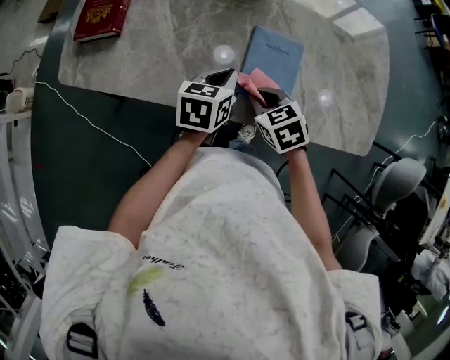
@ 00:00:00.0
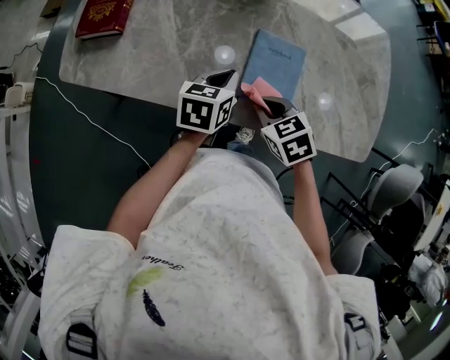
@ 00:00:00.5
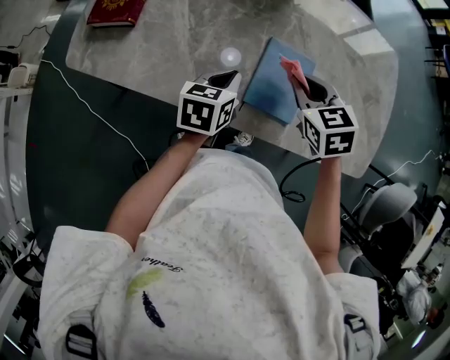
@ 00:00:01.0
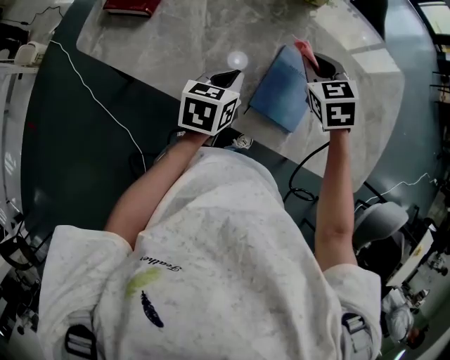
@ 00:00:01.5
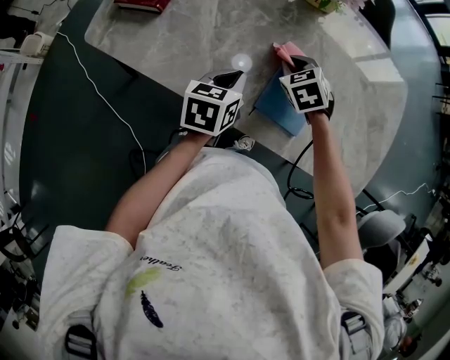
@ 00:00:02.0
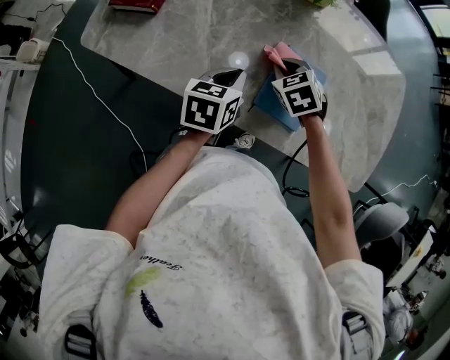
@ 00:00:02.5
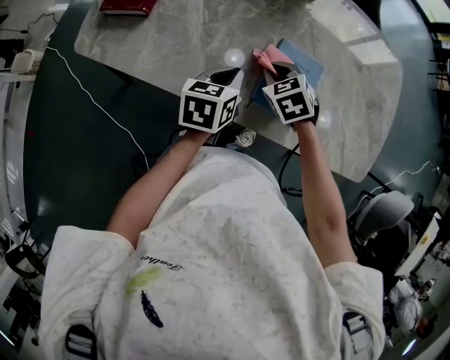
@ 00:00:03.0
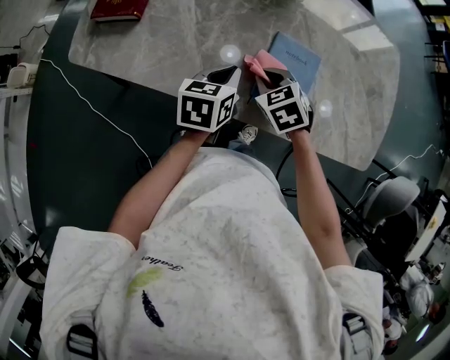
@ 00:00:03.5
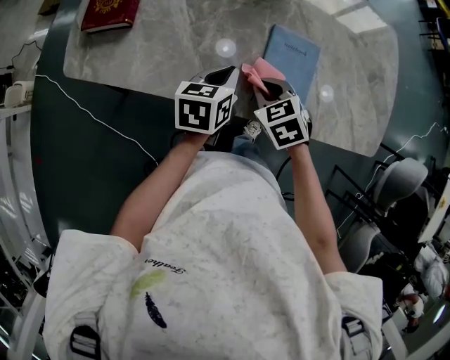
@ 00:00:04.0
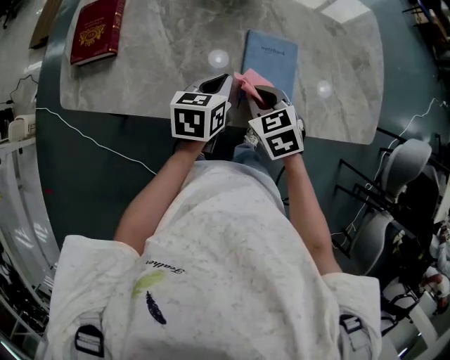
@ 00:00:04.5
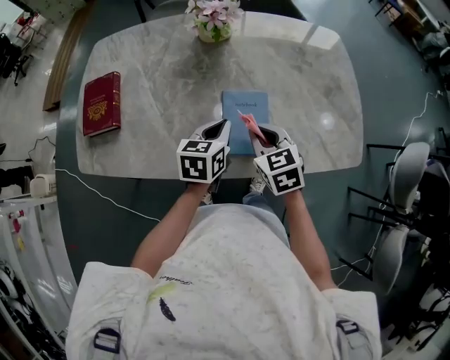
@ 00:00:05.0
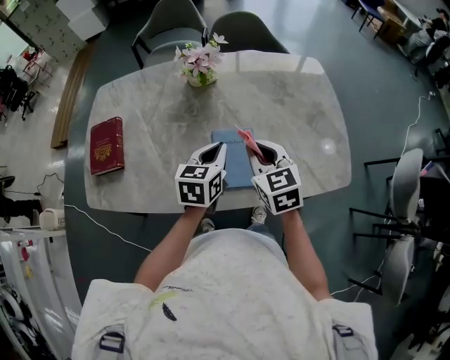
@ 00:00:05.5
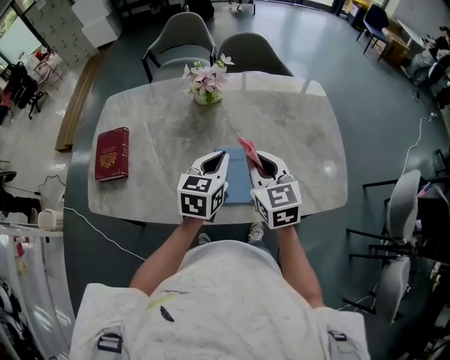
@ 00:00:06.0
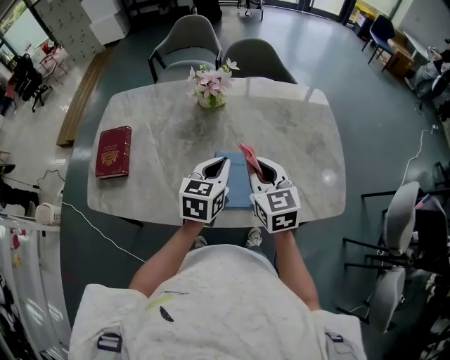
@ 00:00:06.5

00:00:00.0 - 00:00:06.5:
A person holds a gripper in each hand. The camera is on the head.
00:00:00.0 - 00:00:02.0: The left gripper travels to the left by some 5 cm. Meanwhile the right gripper is displaced forward by roughly 15 cm, and rotates approximately 20 degrees.
00:00:02.0 - 00:00:04.5: The right gripper goes roughly 15 cm backward, and turns by roughly 20 degrees.
00:00:04.5 - 00:00:06.5: Both grippers travel together upward and to the right, some 20 cm. The right gripper rotates about 30 degrees.

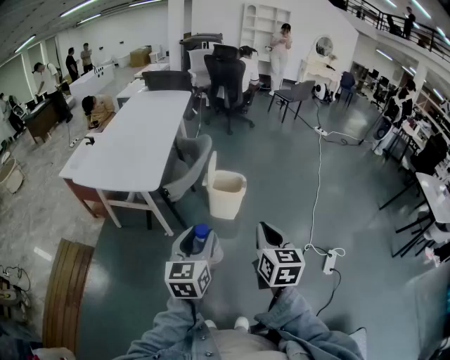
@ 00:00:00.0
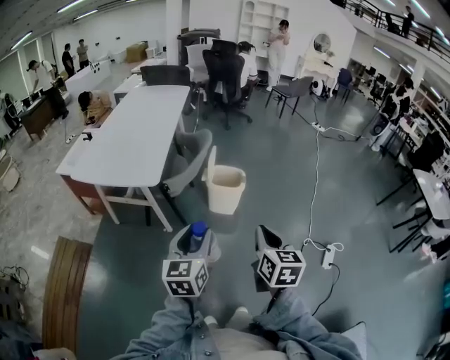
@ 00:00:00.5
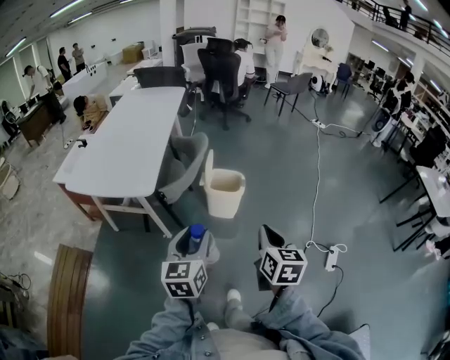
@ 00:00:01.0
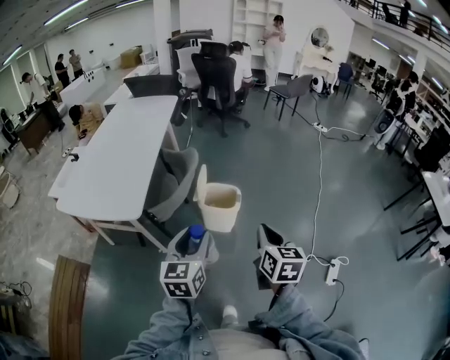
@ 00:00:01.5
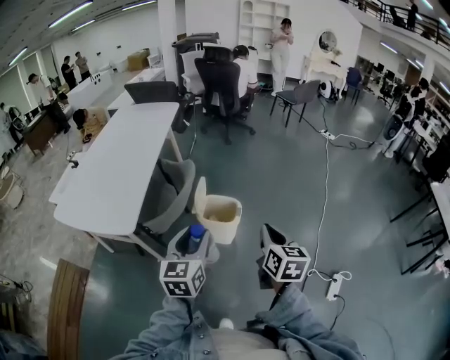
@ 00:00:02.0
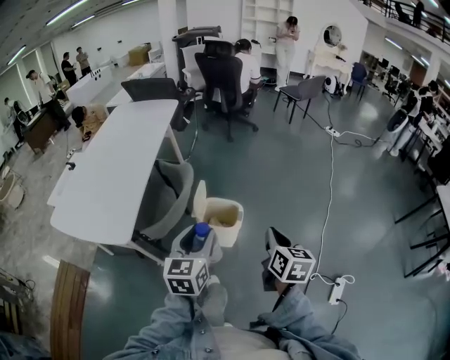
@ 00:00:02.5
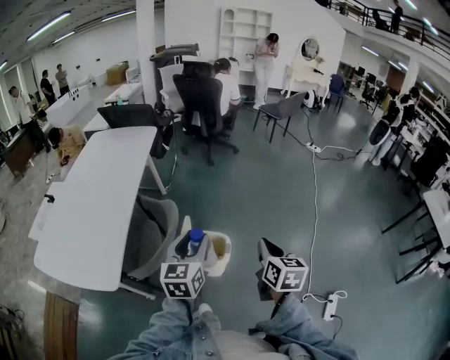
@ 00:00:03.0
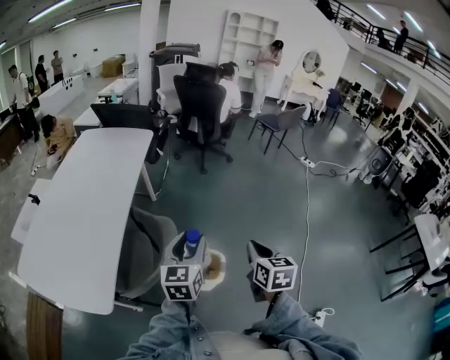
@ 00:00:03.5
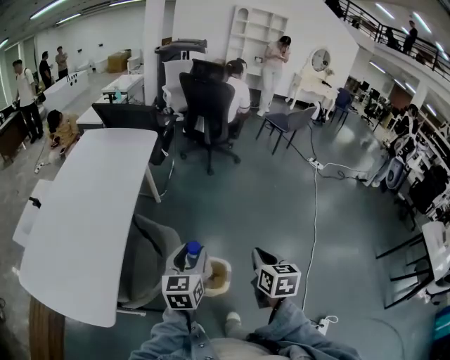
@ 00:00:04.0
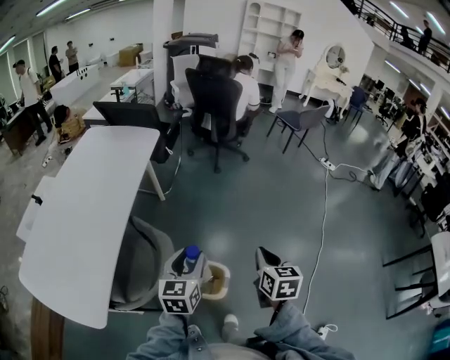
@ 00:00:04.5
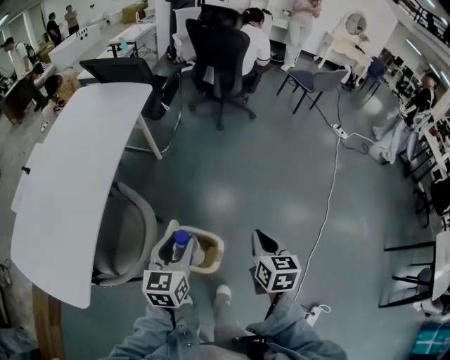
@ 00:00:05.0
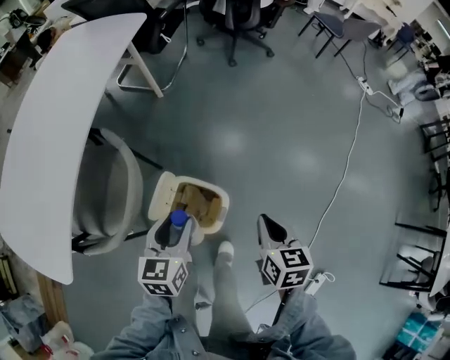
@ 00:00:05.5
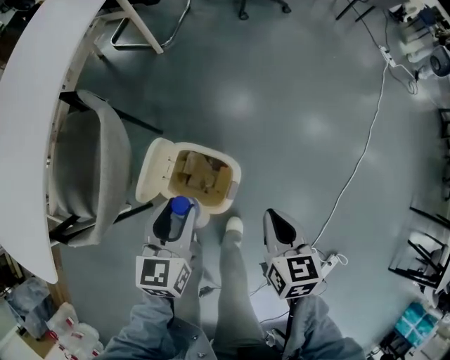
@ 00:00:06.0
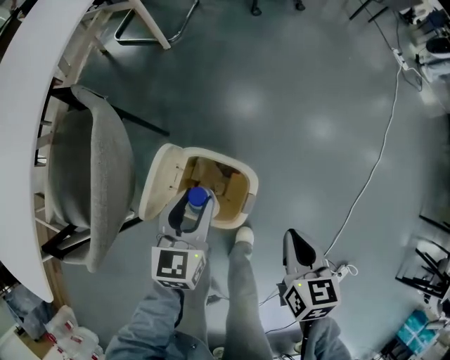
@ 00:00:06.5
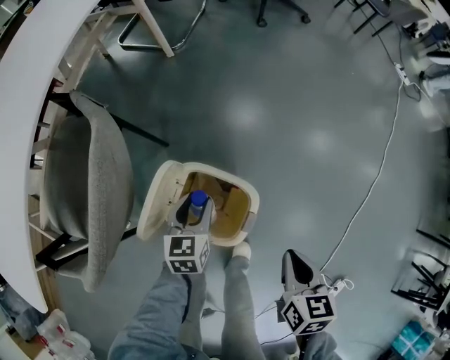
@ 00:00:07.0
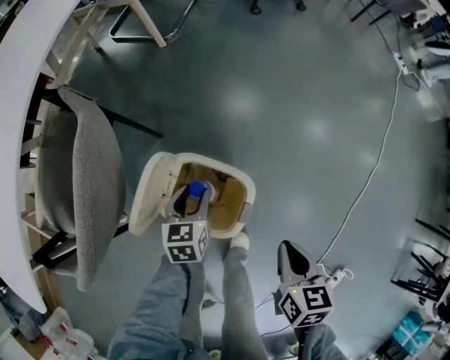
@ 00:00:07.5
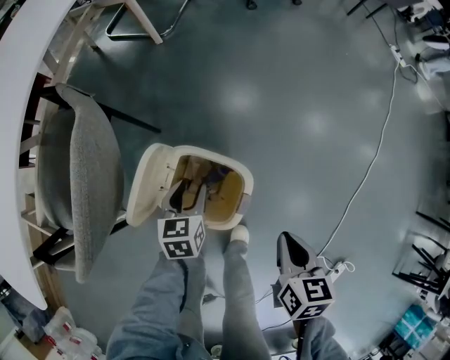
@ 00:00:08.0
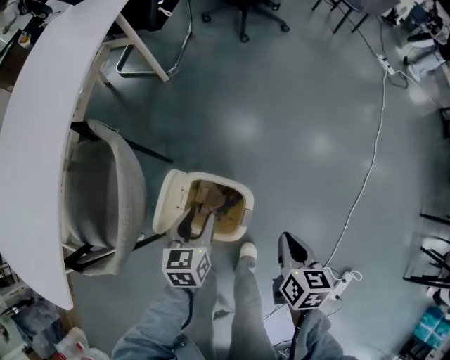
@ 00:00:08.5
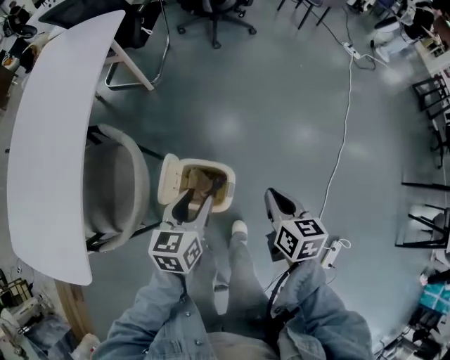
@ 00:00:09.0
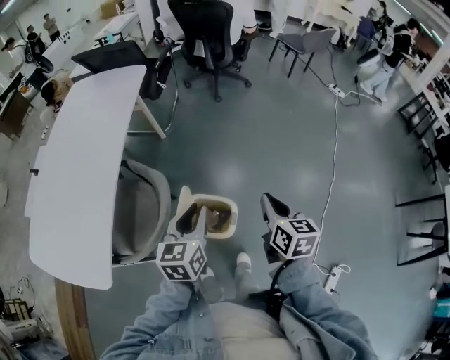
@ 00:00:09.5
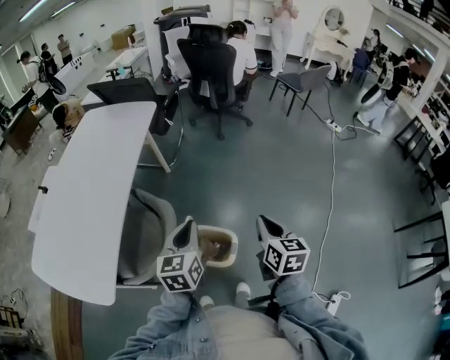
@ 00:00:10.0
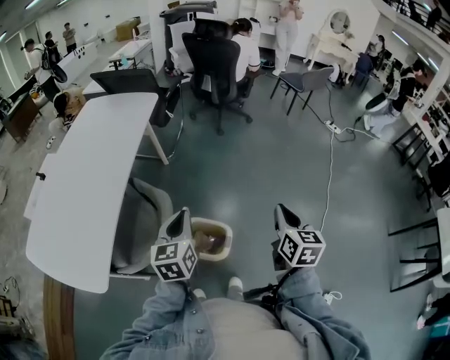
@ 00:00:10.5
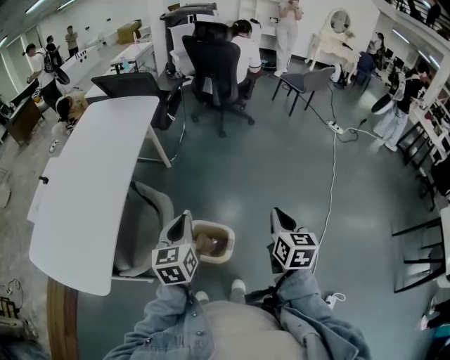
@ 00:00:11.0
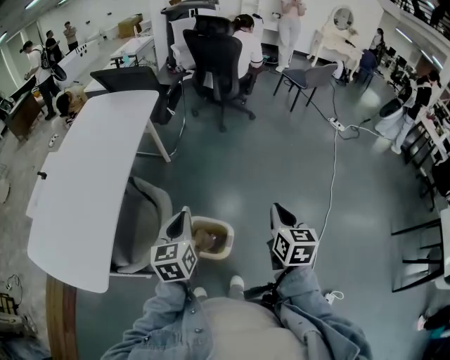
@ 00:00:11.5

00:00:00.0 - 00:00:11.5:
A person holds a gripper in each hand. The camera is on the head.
00:00:00.0 - 00:00:02.0: Both grippers travel together forward, roughly 25 cm.
00:00:02.0 - 00:00:04.0: The grippers both shift forward by approximately 35 cm.
00:00:04.0 - 00:00:06.0: Both grippers move downward, approximately 30 cm.
00:00:06.0 - 00:00:07.5: The left gripper moves downward, about 20 cm. Meanwhile the right gripper shifts approximately 10 cm downward.
00:00:07.5 - 00:00:09.5: The two grippers go roughly 40 cm upward. The right gripper changes its angle by some 20 degrees; the left gripper rotates about 20 degrees, and closes up.
00:00:09.5 - 00:00:11.5: The right gripper moves upward, about 5 cm. Meanwhile the left gripper changes place by about 5 cm.

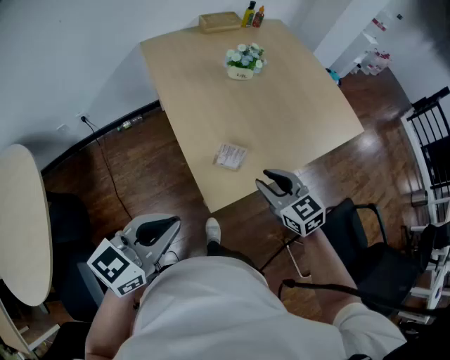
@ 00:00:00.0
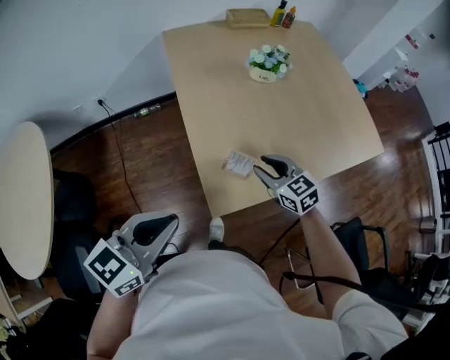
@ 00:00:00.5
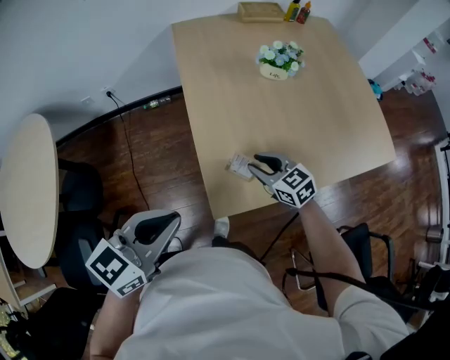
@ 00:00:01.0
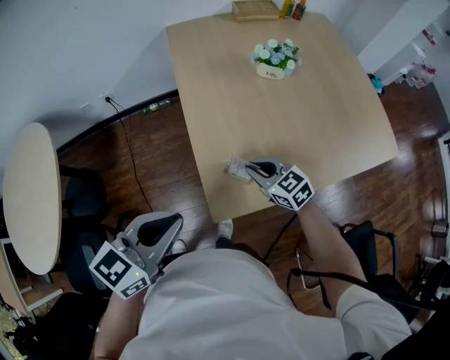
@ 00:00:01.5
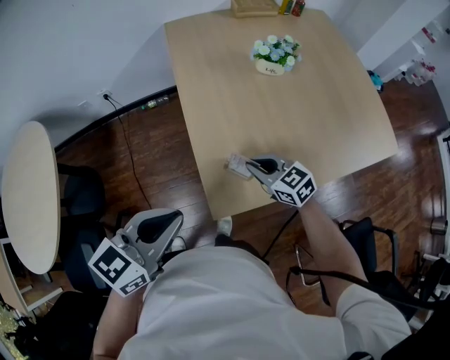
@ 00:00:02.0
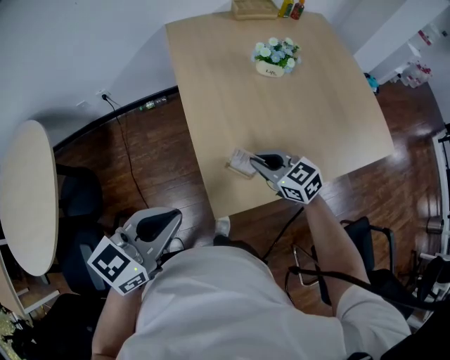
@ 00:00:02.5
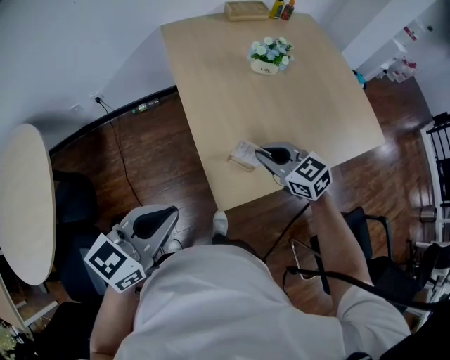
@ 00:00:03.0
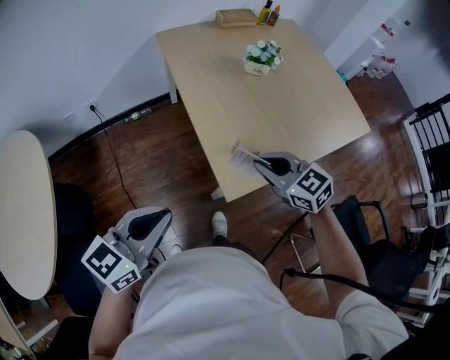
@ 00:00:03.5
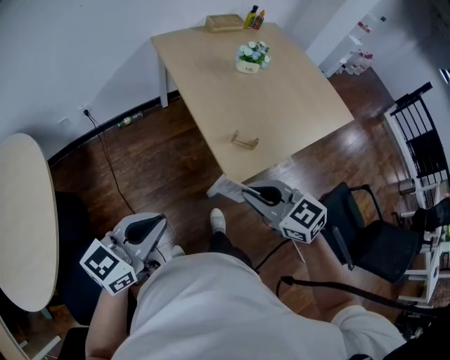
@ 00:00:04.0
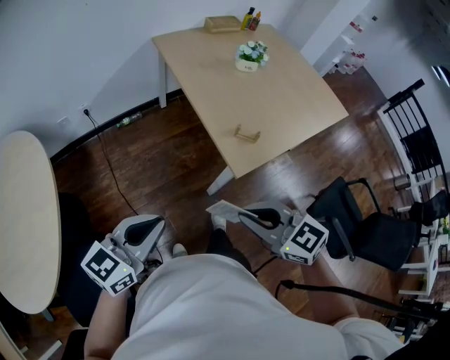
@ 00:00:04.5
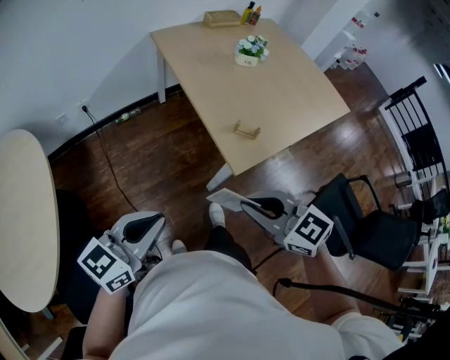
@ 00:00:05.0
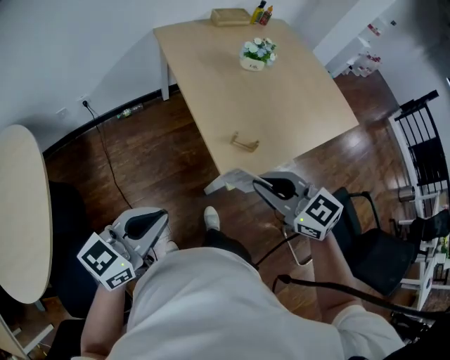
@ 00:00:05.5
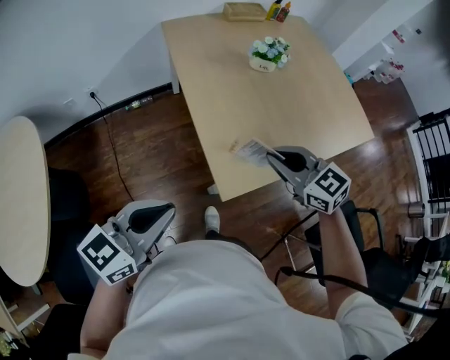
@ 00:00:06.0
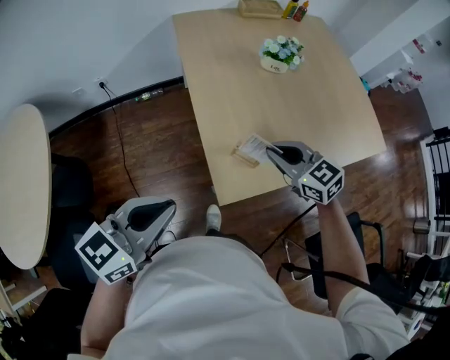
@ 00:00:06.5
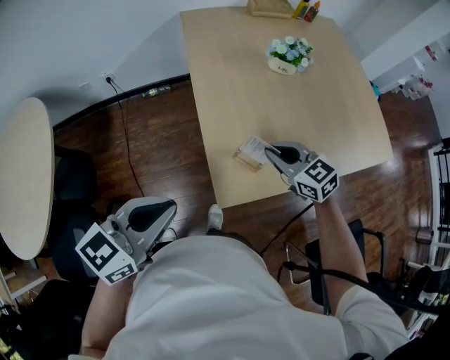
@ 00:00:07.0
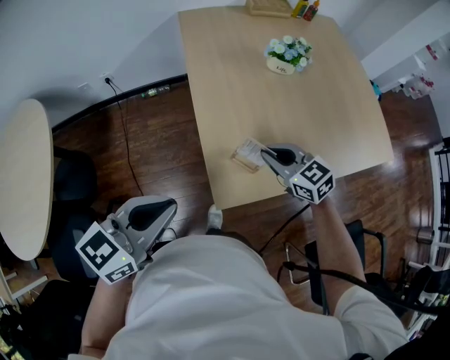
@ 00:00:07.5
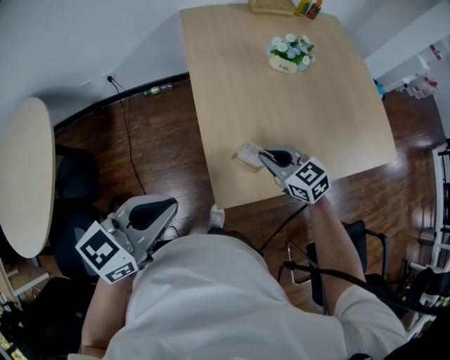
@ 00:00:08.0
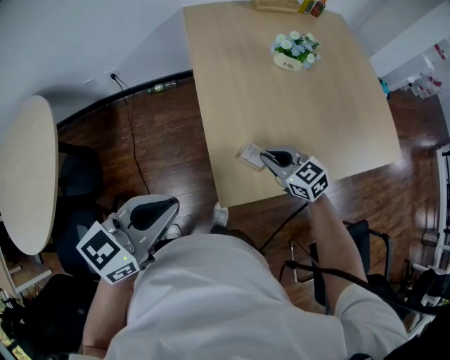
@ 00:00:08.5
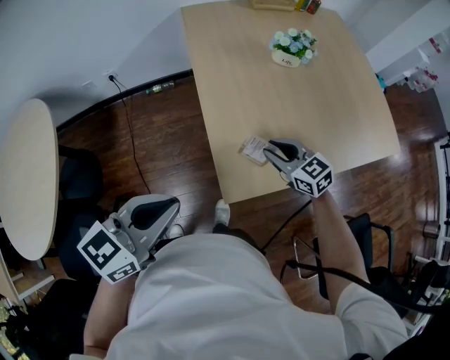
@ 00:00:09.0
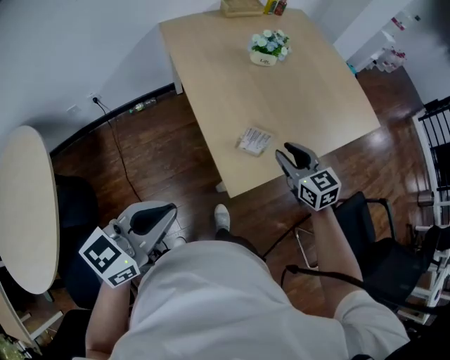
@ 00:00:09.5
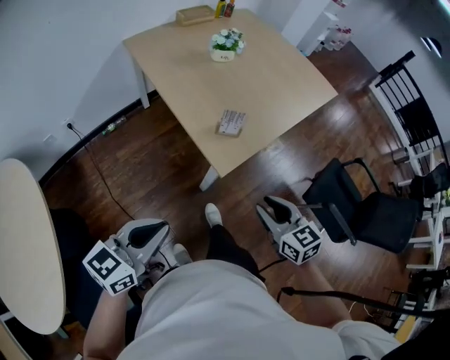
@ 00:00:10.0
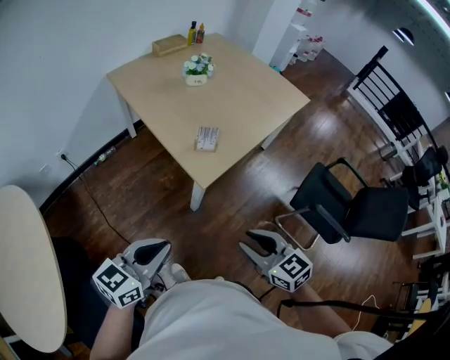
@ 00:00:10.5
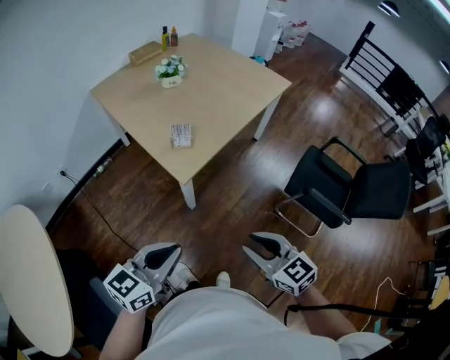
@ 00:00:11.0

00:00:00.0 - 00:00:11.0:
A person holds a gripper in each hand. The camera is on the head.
00:00:00.0 - 00:00:02.0: The left gripper moves forward, roughly 5 cm; the right gripper shifts roughly 15 cm forward and downward, changes its angle by roughly 20 degrees, and closes its fingers.
00:00:02.0 - 00:00:03.5: The left gripper heads to the left and backward, covering roughly 15 cm, while the right gripper travels upward, backward and to the left by some 15 cm.
00:00:03.5 - 00:00:05.5: The right gripper is displaced backward and upward by about 10 cm.
00:00:05.5 - 00:00:07.5: The right gripper heads forward, downward and to the right, covering about 25 cm; the left gripper moves to the right and forward, roughly 15 cm.
00:00:07.5 - 00:00:09.0: The grippers stay close to where they were, moving slightly.
00:00:09.0 - 00:00:11.0: The left gripper ends up roughly 25 cm from where it was, and changes its angle by roughly 30 degrees, while the right gripper ends up some 50 cm from where it was, and changes its angle by about 40 degrees.
